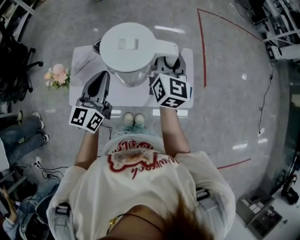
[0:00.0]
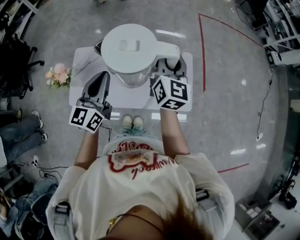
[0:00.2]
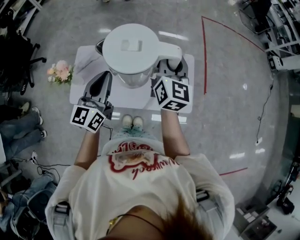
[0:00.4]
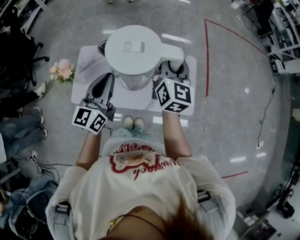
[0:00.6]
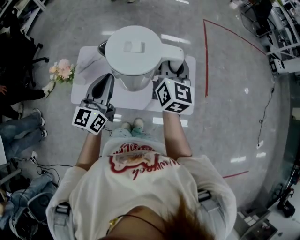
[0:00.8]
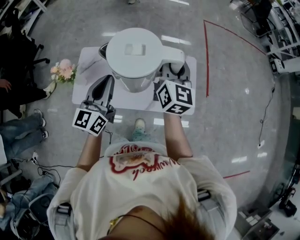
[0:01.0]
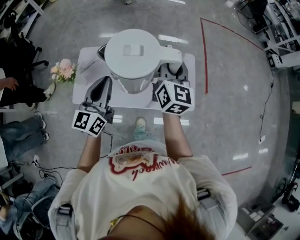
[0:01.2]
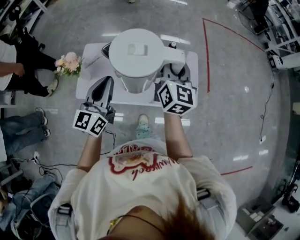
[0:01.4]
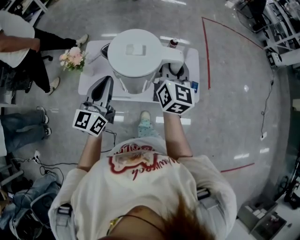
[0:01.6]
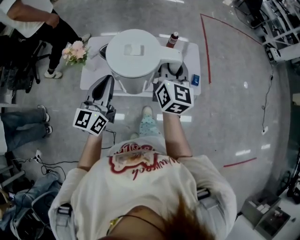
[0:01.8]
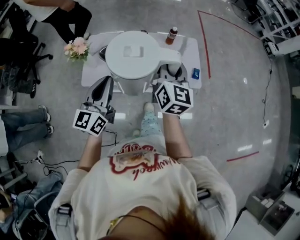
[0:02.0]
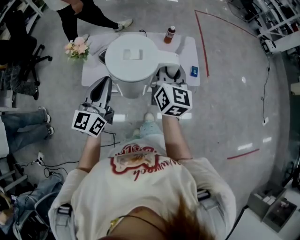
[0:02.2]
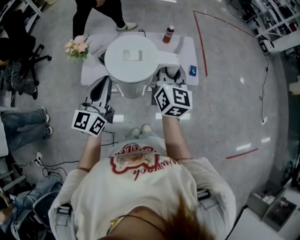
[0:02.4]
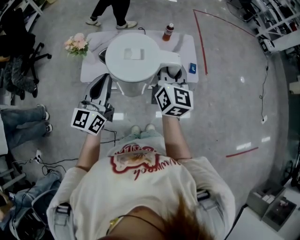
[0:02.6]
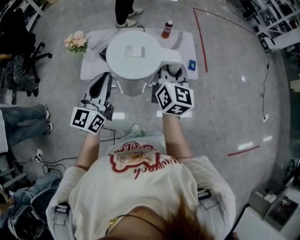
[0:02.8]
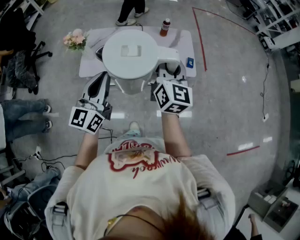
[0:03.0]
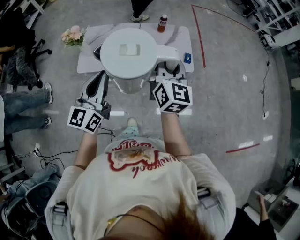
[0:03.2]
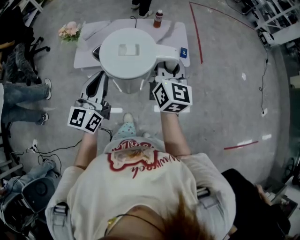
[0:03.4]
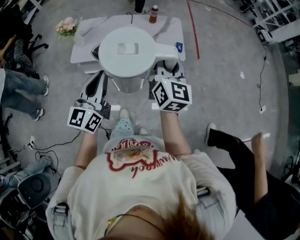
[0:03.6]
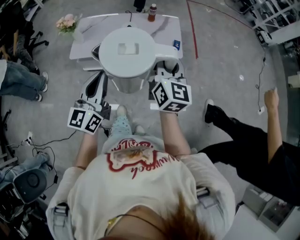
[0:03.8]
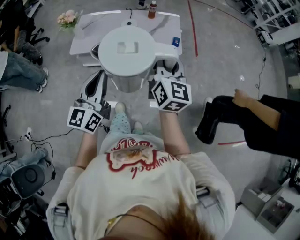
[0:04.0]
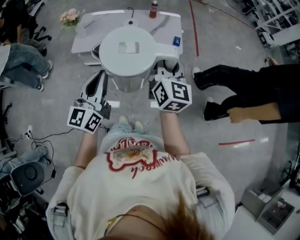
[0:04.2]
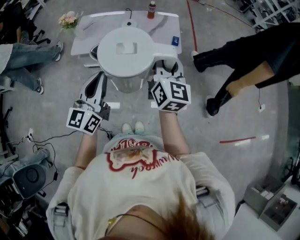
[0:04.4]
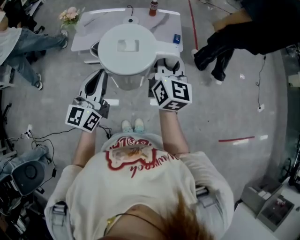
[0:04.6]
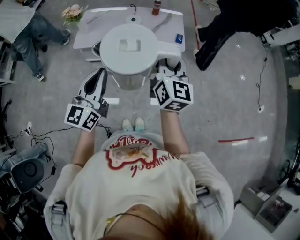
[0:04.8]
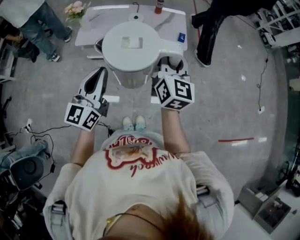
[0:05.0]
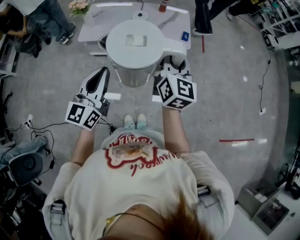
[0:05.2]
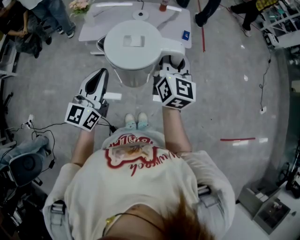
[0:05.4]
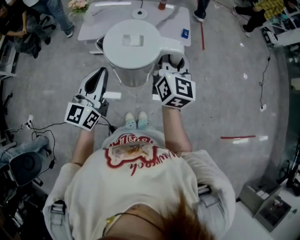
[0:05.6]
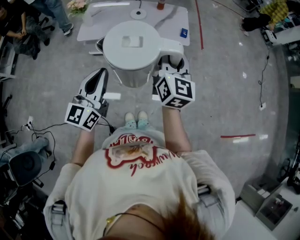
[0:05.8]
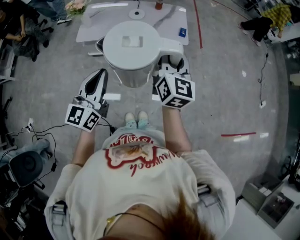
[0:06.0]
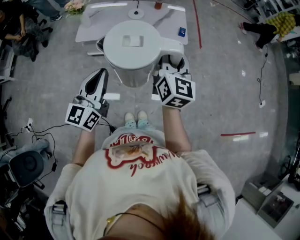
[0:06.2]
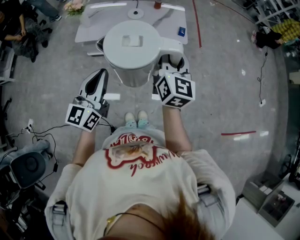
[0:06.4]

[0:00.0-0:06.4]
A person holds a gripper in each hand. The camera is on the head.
0:00.0 to 0:01.6: Both grippers travel together backward and to the left, roughly 15 cm.
0:01.6 to 0:03.2: The grippers both shift backward by about 25 cm.
0:03.2 to 0:04.8: Both grippers travel together backward and to the right, roughly 20 cm.
0:04.8 to 0:06.4: The left gripper moves roughly 5 cm.

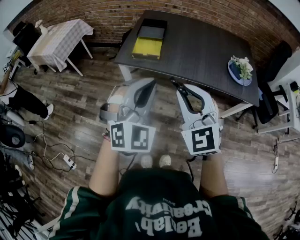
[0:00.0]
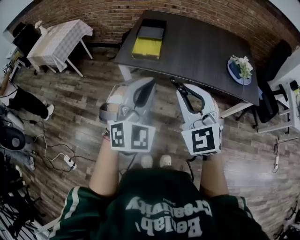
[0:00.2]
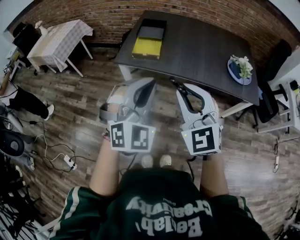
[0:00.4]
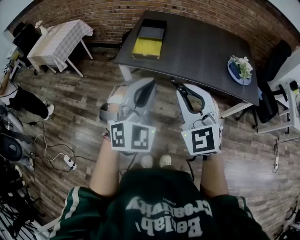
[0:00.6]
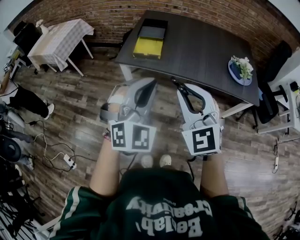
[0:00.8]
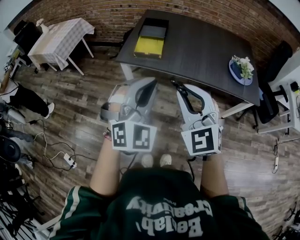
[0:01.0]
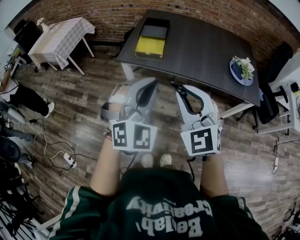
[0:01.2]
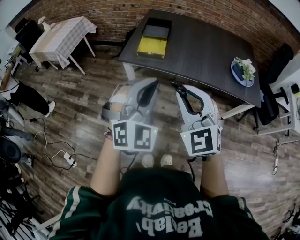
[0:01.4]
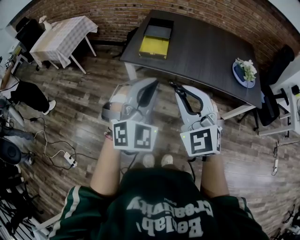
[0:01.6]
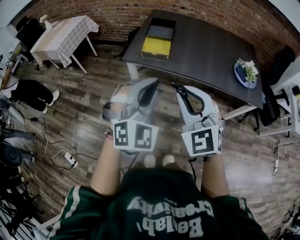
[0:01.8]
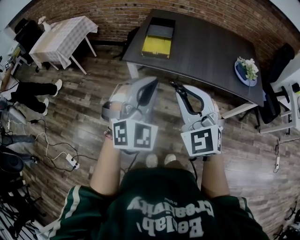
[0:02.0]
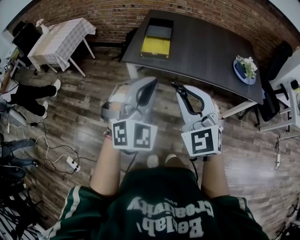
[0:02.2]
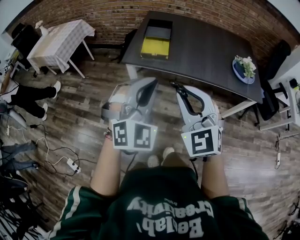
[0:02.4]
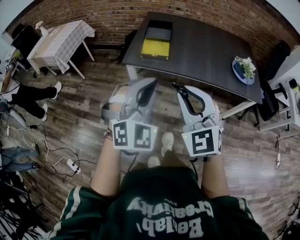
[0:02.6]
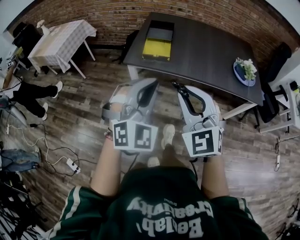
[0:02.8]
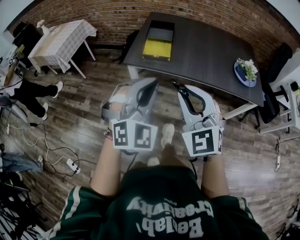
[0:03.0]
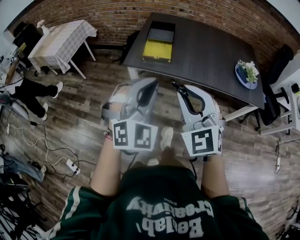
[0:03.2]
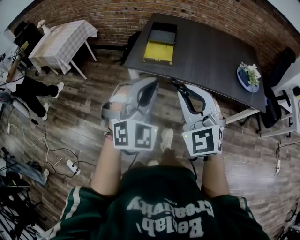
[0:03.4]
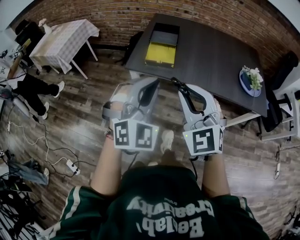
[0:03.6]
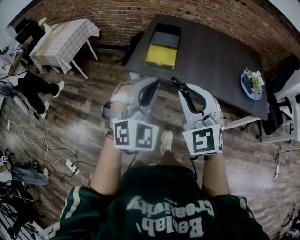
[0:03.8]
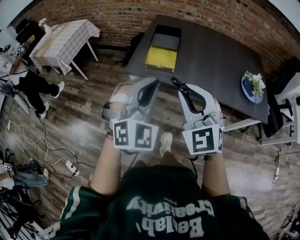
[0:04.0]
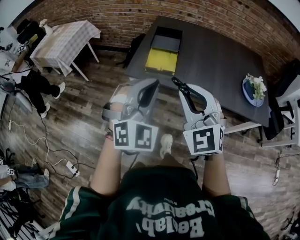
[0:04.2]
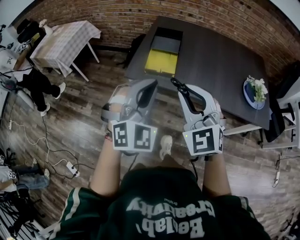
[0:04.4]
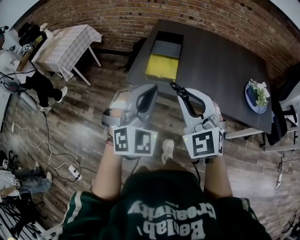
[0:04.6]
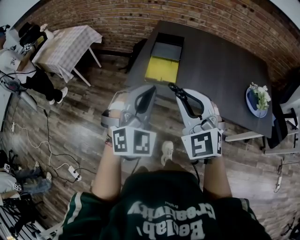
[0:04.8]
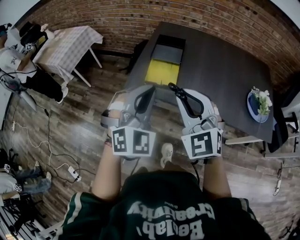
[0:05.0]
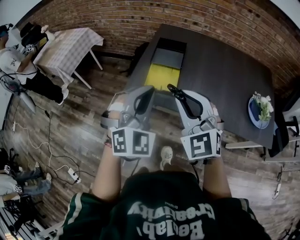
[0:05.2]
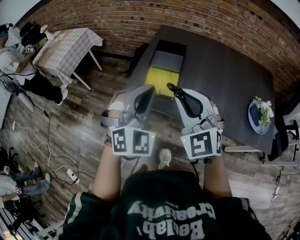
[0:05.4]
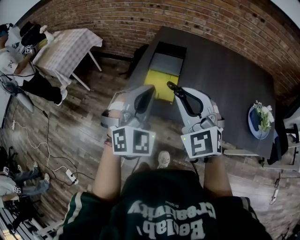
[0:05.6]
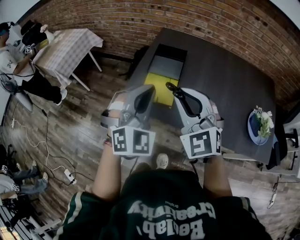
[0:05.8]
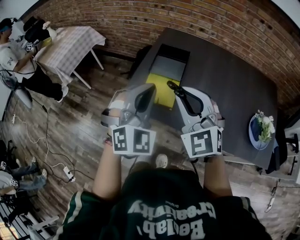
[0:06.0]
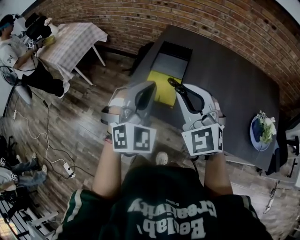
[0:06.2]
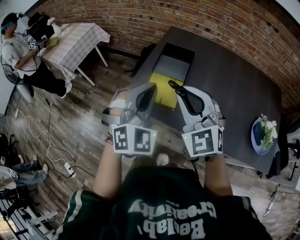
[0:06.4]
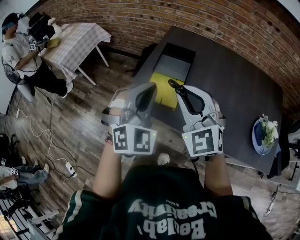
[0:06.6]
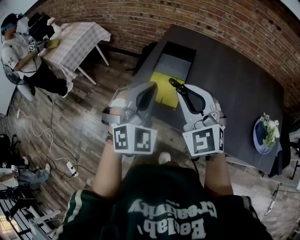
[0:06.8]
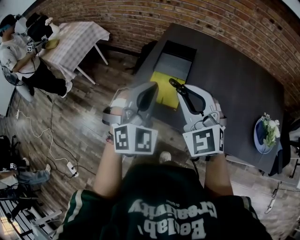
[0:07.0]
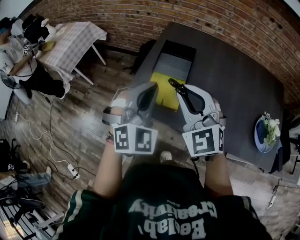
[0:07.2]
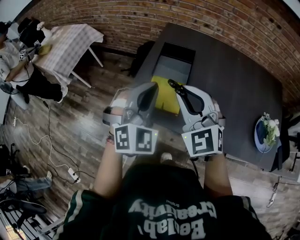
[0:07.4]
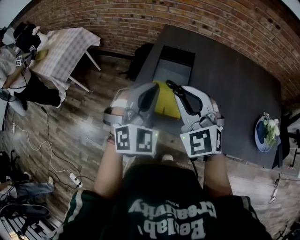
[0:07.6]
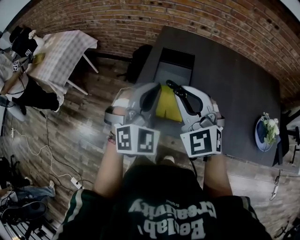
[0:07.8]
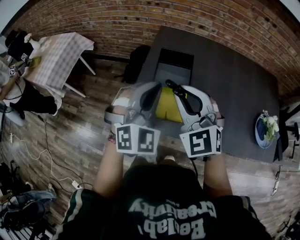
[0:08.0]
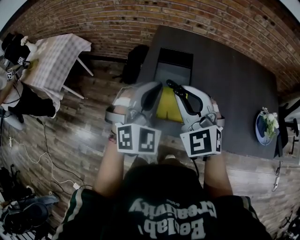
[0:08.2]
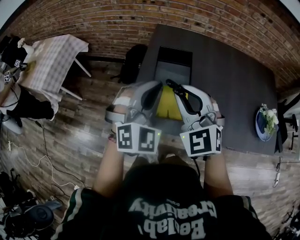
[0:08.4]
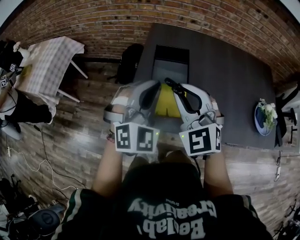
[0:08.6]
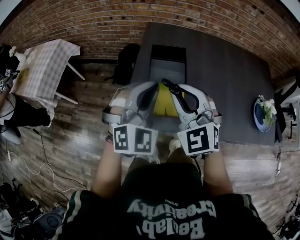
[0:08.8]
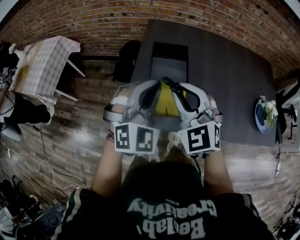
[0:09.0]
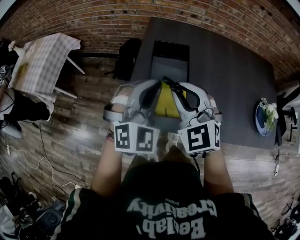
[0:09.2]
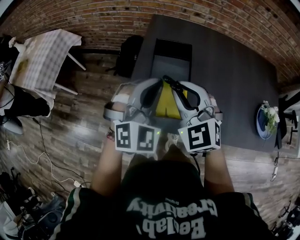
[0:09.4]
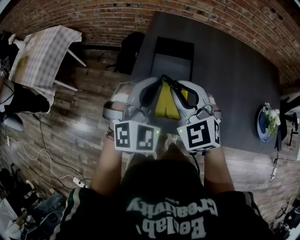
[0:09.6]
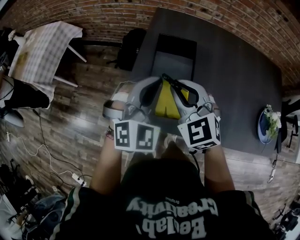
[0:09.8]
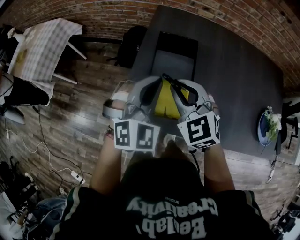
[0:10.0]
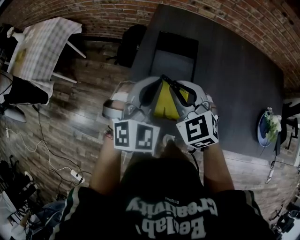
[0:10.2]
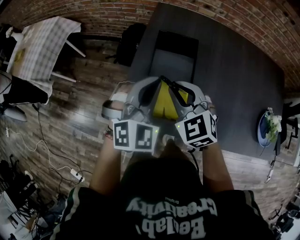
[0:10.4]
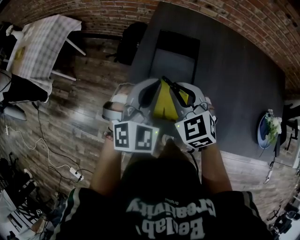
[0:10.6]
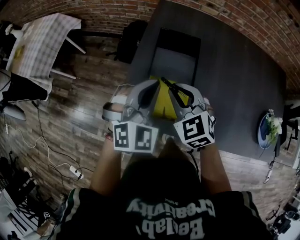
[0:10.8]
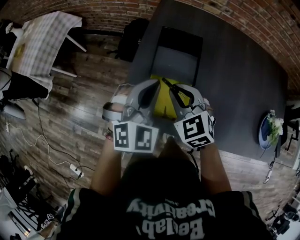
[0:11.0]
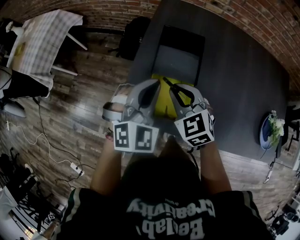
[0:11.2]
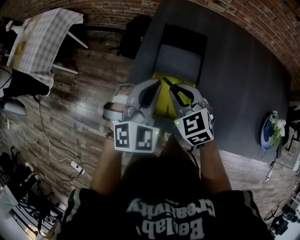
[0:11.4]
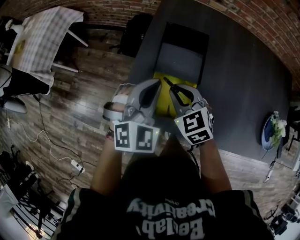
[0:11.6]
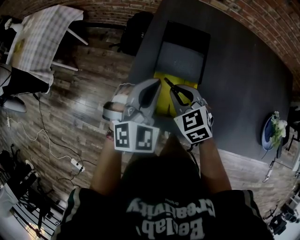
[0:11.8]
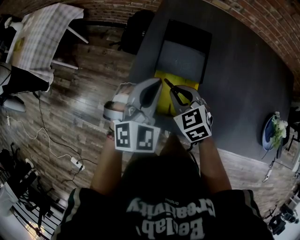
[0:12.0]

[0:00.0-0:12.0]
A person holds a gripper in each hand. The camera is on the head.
0:00.0 to 0:03.0: The grippers make only small movements.
0:03.0 to 0:04.4: Both grippers move forward, approximately 15 cm.
0:04.4 to 0:06.0: Both grippers move forward, some 20 cm.
0:06.0 to 0:07.6: The grippers both shift forward by about 10 cm.
0:07.6 to 0:09.0: The left gripper changes place by roughly 5 cm. Meanwhile the right gripper changes place by approximately 5 cm.
0:09.0 to 0:10.4: The right gripper shifts approximately 15 cm downward and forward. The left gripper shifts roughly 10 cm forward and downward.
0:10.4 to 0:12.0: The right gripper heads downward, covering approximately 10 cm; the left gripper moves downward, some 5 cm.

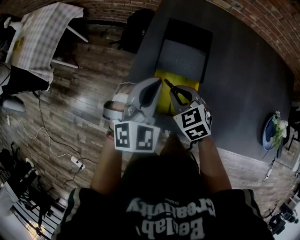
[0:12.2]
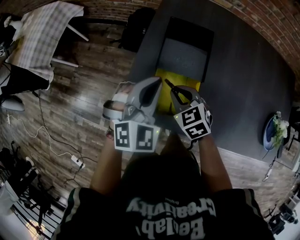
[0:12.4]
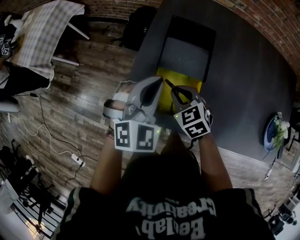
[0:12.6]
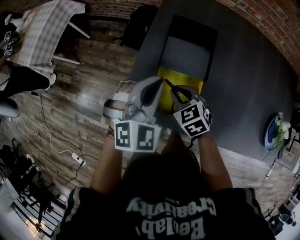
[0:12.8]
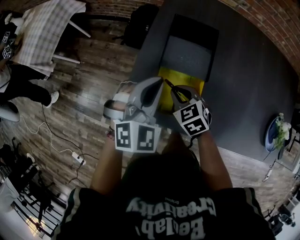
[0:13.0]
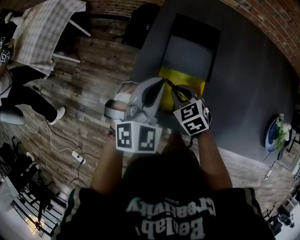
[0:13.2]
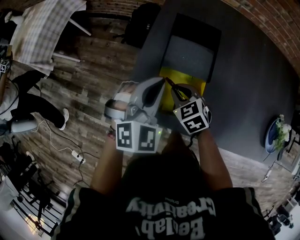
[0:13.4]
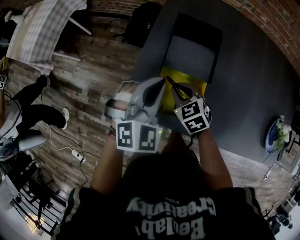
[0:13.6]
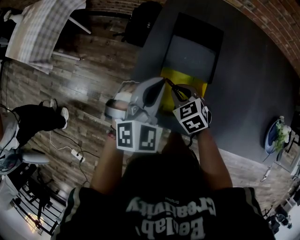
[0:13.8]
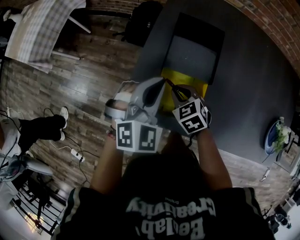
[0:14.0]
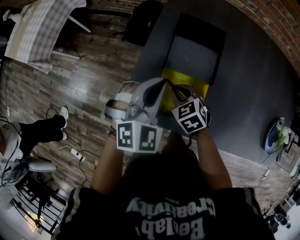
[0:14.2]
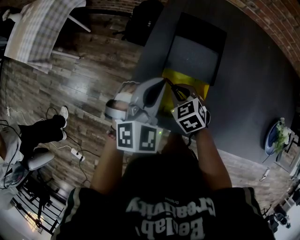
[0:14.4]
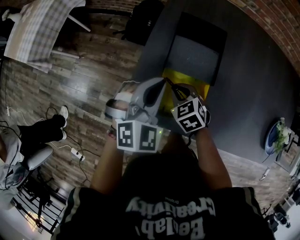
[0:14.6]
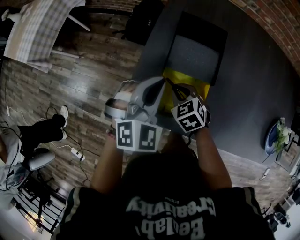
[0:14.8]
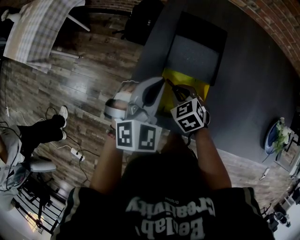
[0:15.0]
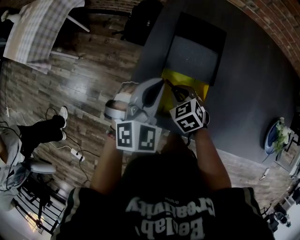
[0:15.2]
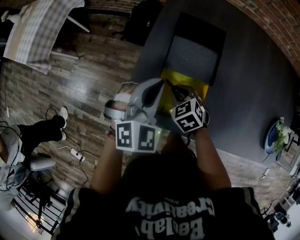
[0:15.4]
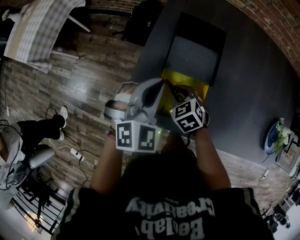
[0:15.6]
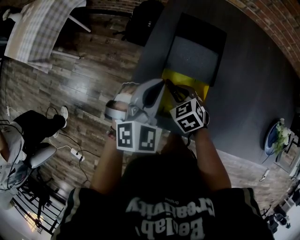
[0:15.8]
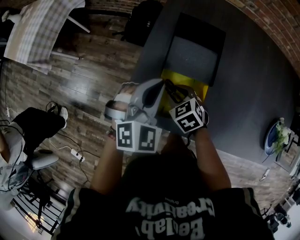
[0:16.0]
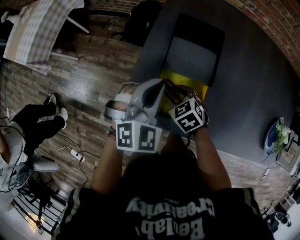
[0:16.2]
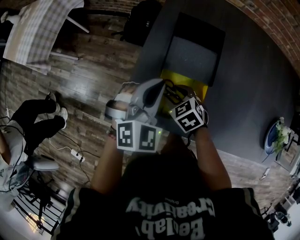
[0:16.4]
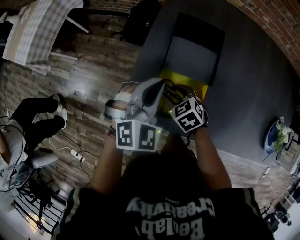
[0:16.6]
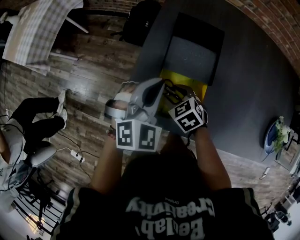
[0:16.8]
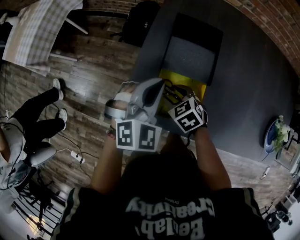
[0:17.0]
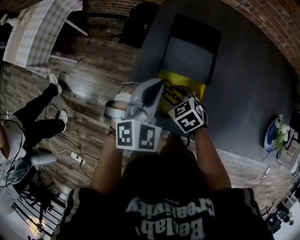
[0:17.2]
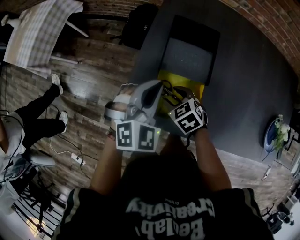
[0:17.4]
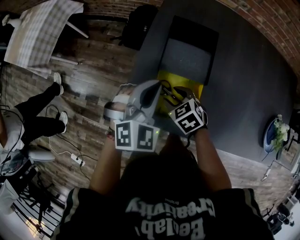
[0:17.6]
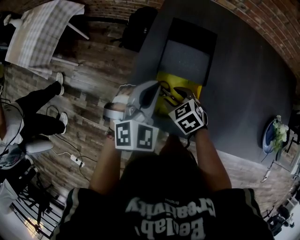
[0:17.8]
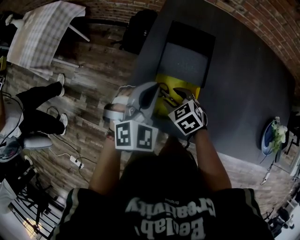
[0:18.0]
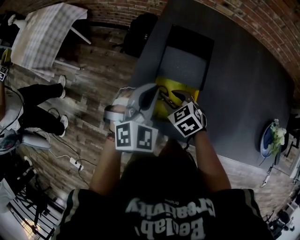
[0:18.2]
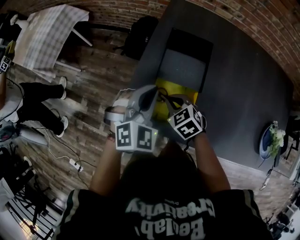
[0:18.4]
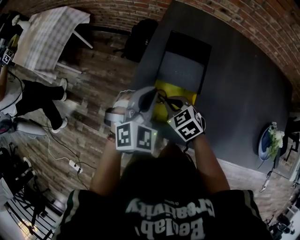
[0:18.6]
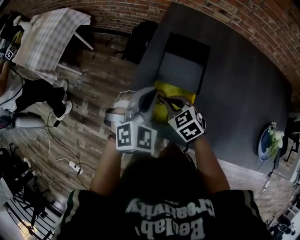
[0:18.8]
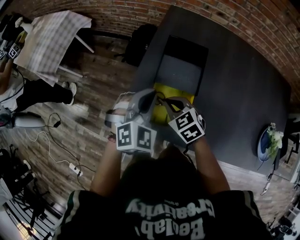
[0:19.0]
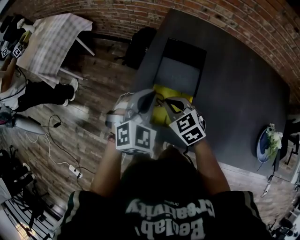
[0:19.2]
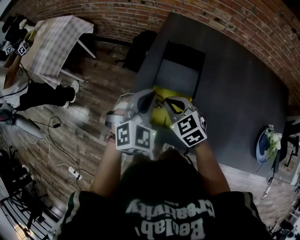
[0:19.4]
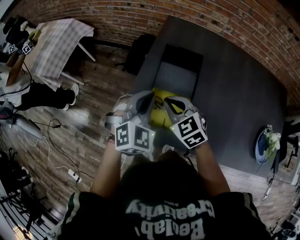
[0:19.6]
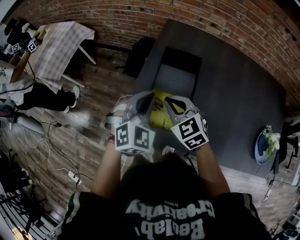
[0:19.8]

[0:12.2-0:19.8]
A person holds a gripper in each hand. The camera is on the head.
0:12.2 to 0:13.8: The right gripper moves downward, about 5 cm.
0:13.8 to 0:15.2: The grippers move only a little.
0:15.2 to 0:16.8: The right gripper opens its fingers.
0:16.8 to 0:18.2: The grippers move only a little.
0:18.2 to 0:19.8: The right gripper moves upward, approximately 15 cm, changes its angle by roughly 20 degrees, and closes, while the left gripper travels upward by some 5 cm.
